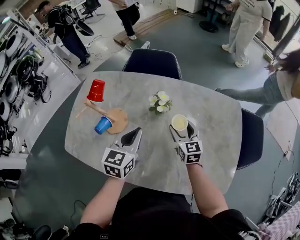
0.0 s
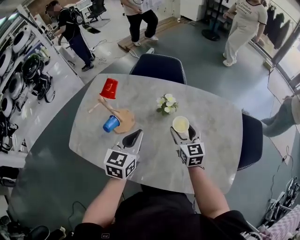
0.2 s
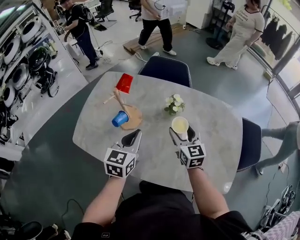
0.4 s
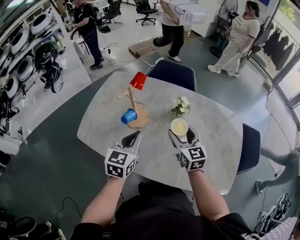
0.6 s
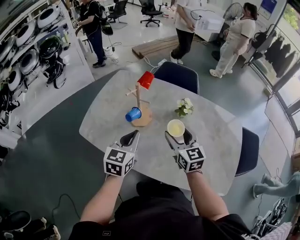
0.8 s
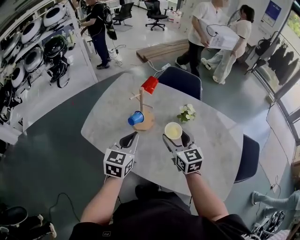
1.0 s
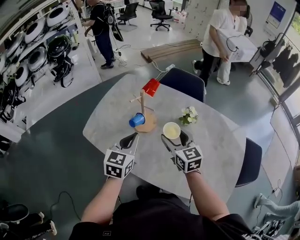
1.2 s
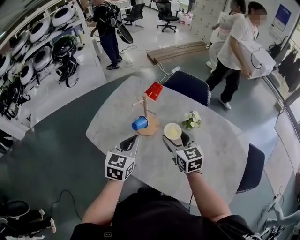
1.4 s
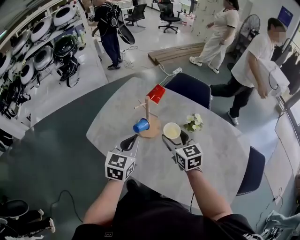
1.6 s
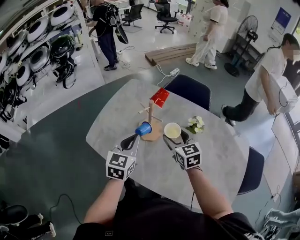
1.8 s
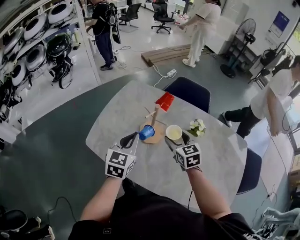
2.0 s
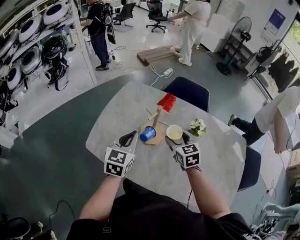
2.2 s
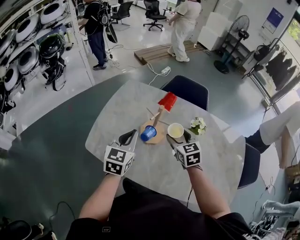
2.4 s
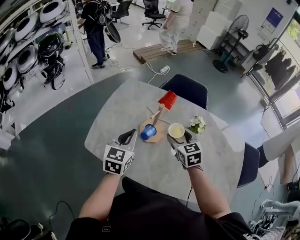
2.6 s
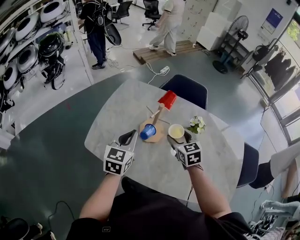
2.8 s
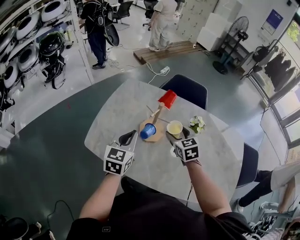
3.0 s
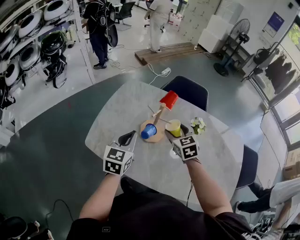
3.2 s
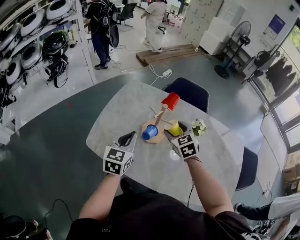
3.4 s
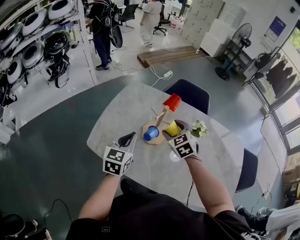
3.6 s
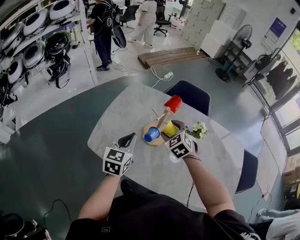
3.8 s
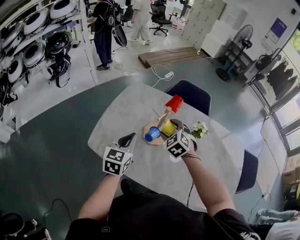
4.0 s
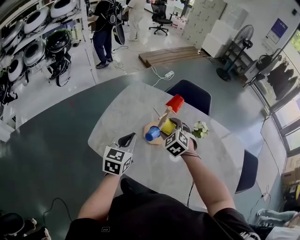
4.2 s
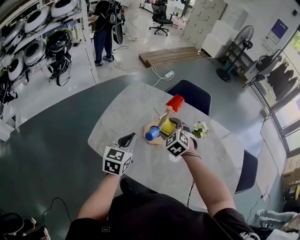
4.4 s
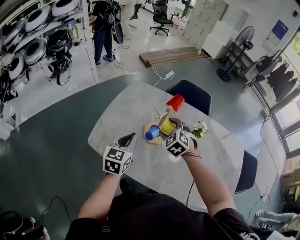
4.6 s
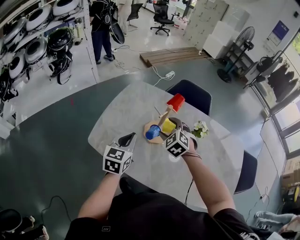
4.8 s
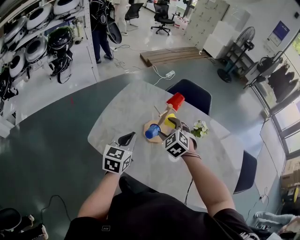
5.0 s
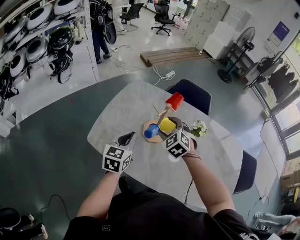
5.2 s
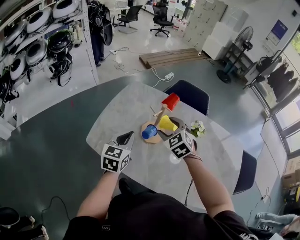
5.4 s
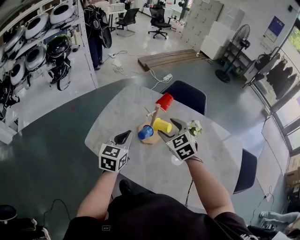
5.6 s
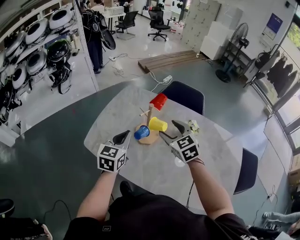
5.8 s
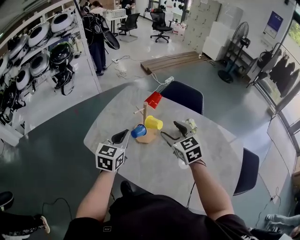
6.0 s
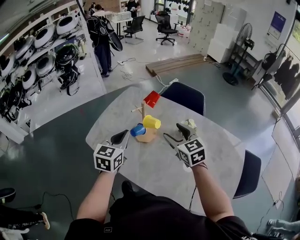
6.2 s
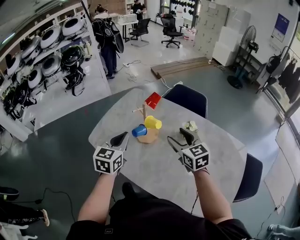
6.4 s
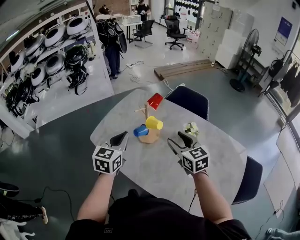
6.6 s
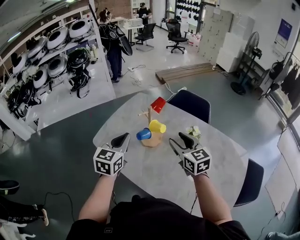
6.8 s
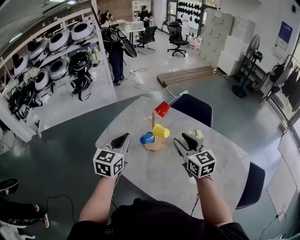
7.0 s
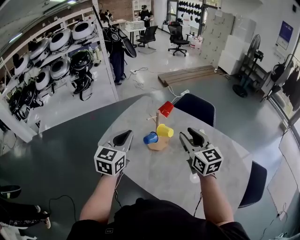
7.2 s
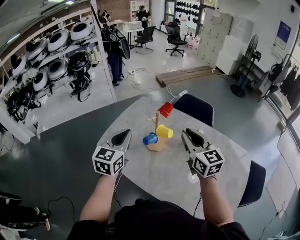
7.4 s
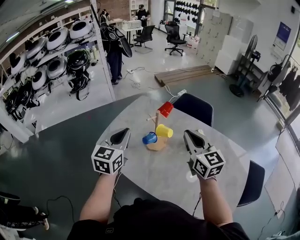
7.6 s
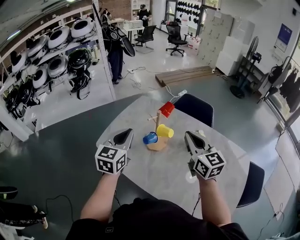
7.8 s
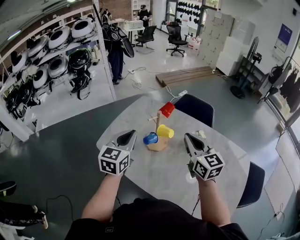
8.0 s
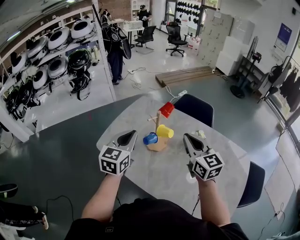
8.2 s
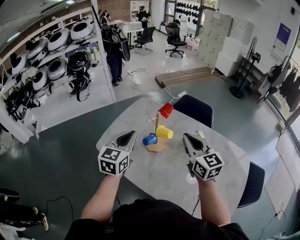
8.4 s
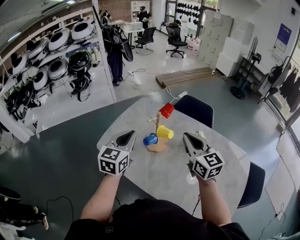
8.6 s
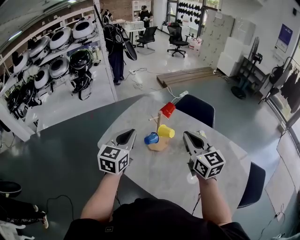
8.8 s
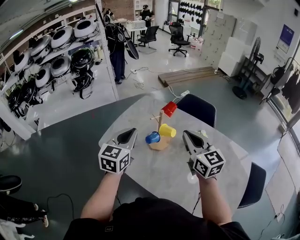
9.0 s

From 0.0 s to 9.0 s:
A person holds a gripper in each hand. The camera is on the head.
From 0.0 s to 1.6 s: The left gripper moves to the left, some 20 cm, while the right gripper travels to the left and upward by approximately 25 cm, and turns by some 30 degrees.
From 1.6 s to 3.0 s: The right gripper ends up roughly 5 cm from where it was; the left gripper is displaced to the left and forward by about 10 cm.
From 3.0 s to 4.4 s: The right gripper travels to the left by approximately 10 cm, and swivels some 40 degrees.
From 4.4 s to 6.0 s: The right gripper goes roughly 15 cm to the right, upward and backward, and rotates some 30 degrees, while the left gripper heads to the right, covering approximately 5 cm.
From 6.0 s to 7.6 s: Both grippers travel together upward, approximately 10 cm. The right gripper changes its angle by some 20 degrees, and closes its fingers.
From 7.6 s to 9.0 s: The grippers make only small movements.

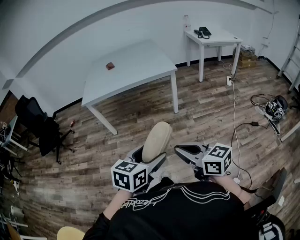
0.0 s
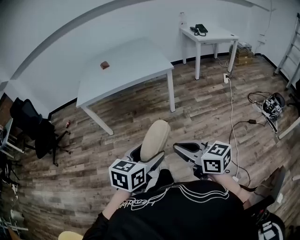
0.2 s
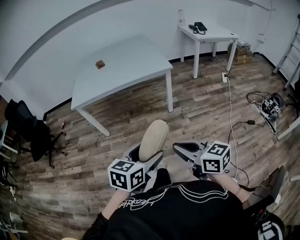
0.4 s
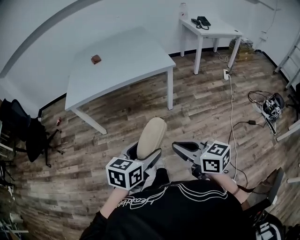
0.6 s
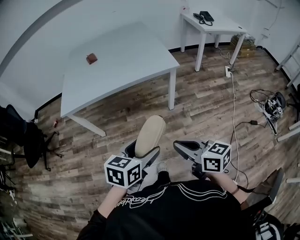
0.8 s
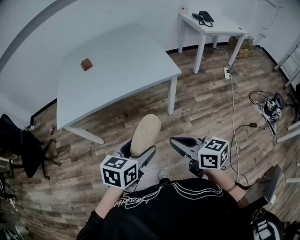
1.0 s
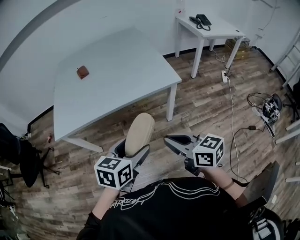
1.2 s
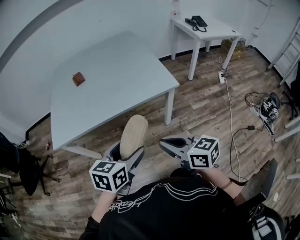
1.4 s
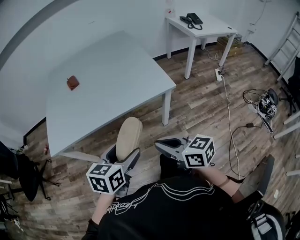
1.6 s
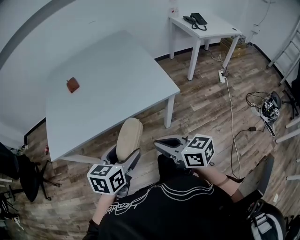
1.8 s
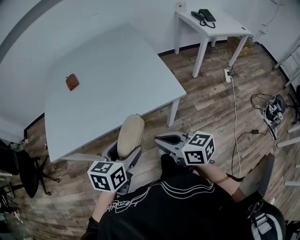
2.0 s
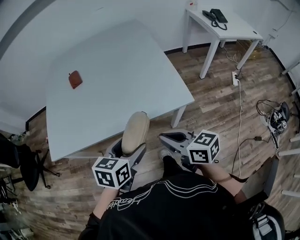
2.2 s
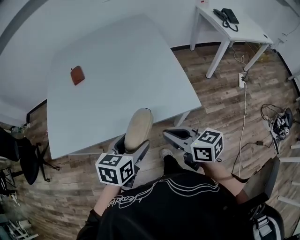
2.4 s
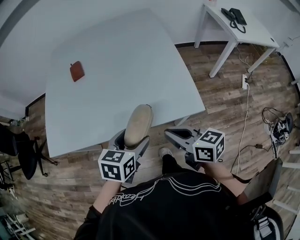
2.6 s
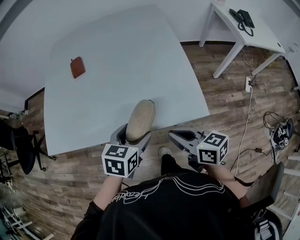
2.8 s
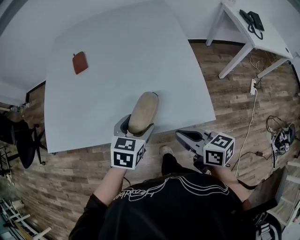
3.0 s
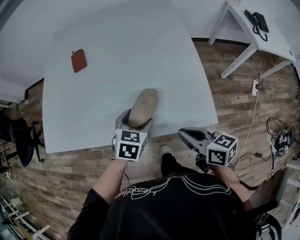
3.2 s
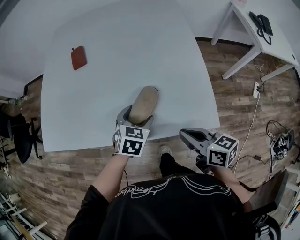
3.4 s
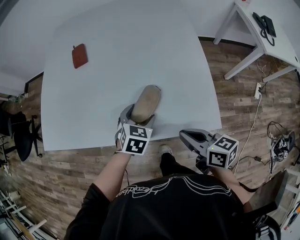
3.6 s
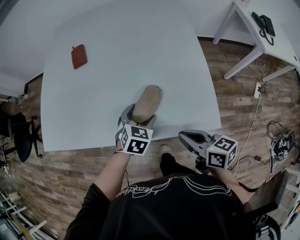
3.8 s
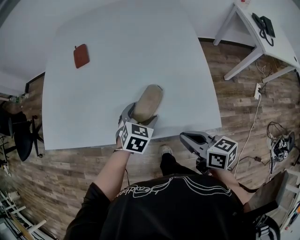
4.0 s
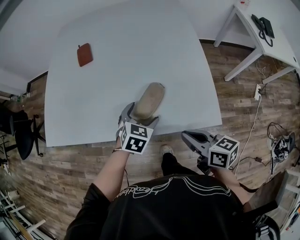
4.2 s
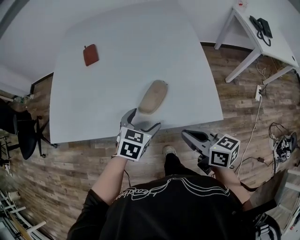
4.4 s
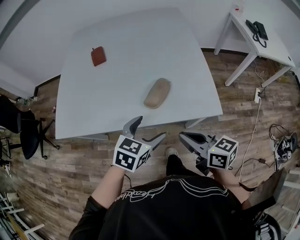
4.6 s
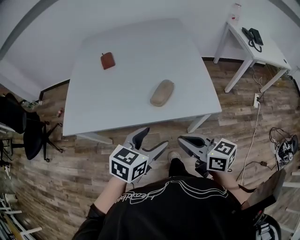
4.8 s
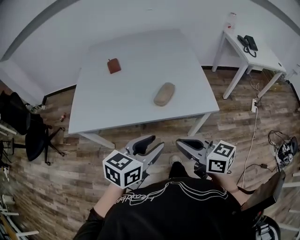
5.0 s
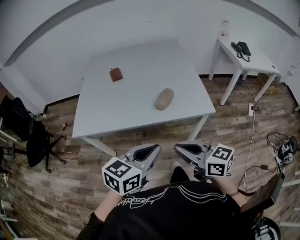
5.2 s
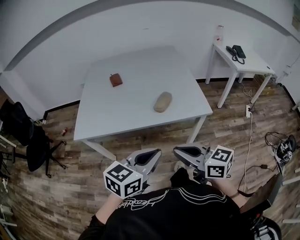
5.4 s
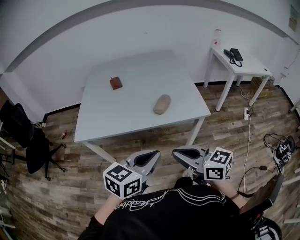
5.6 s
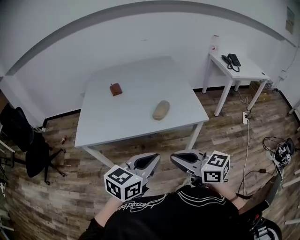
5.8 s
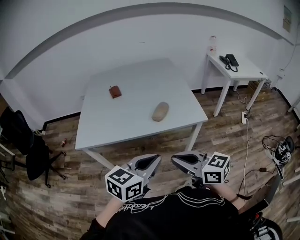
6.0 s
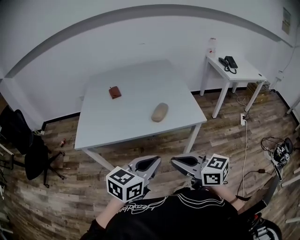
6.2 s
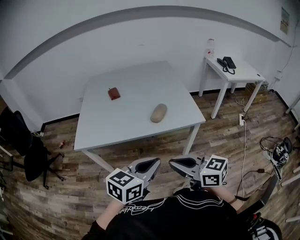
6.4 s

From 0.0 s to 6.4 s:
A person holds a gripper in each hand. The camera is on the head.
From 0.0 s to 1.6 s: The two grippers travel together, forward, some 50 cm.
From 1.6 s to 3.2 s: The left gripper heads forward and downward, covering about 35 cm, and rotates approximately 20 degrees; the right gripper moves forward, approximately 30 cm.
From 3.2 s to 4.8 s: The right gripper heads backward, to the left and upward, covering approximately 20 cm, while the left gripper travels backward and upward by roughly 25 cm, and turns by about 20 degrees.
From 4.8 s to 6.4 s: The grippers both shift backward and upward by roughly 20 cm. The left gripper closes up.

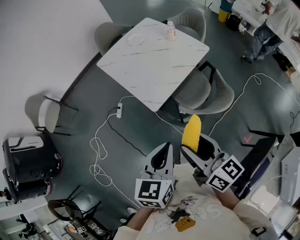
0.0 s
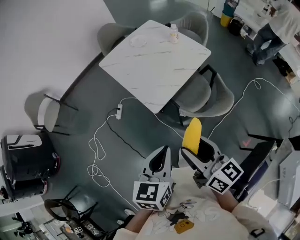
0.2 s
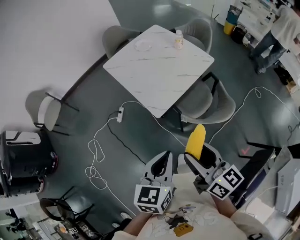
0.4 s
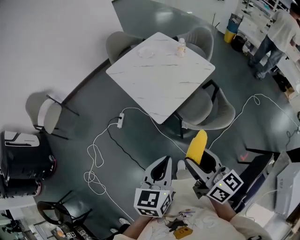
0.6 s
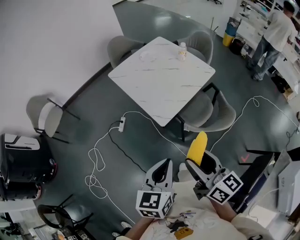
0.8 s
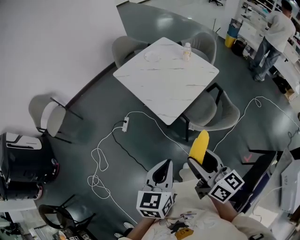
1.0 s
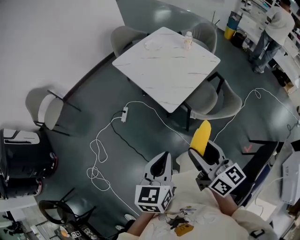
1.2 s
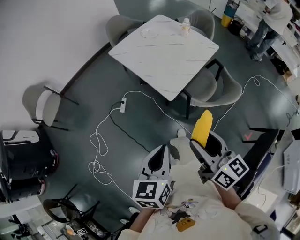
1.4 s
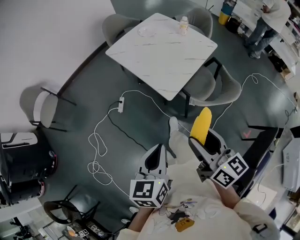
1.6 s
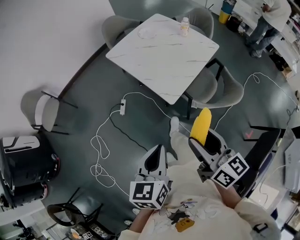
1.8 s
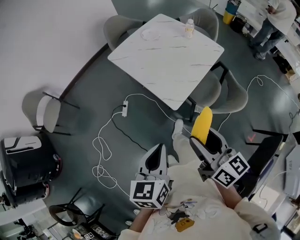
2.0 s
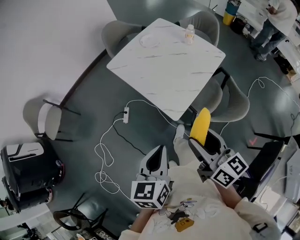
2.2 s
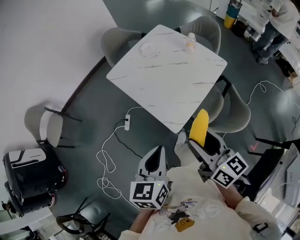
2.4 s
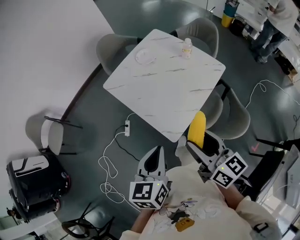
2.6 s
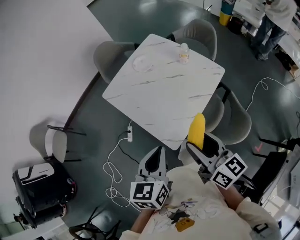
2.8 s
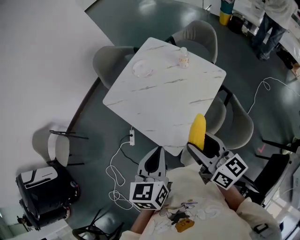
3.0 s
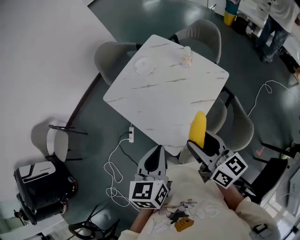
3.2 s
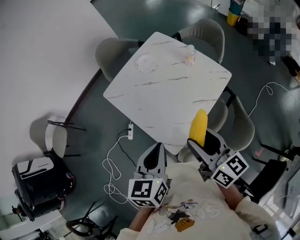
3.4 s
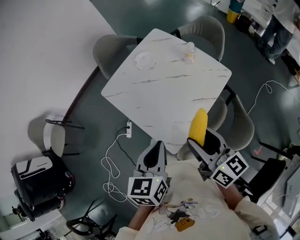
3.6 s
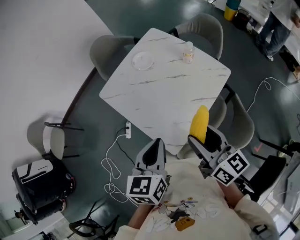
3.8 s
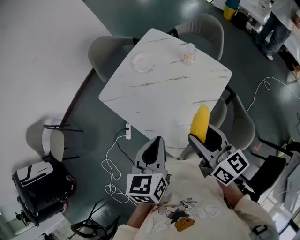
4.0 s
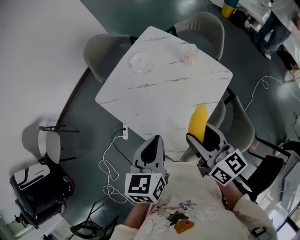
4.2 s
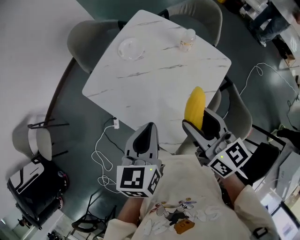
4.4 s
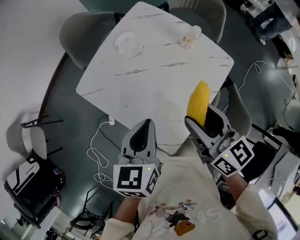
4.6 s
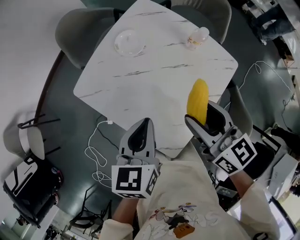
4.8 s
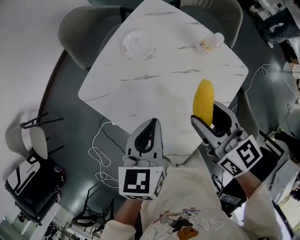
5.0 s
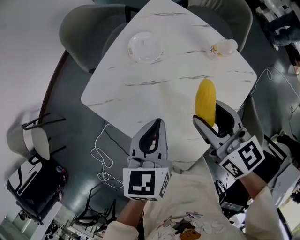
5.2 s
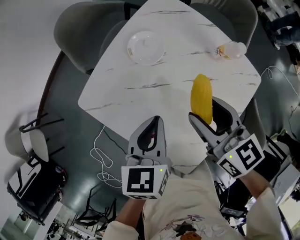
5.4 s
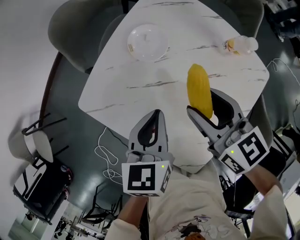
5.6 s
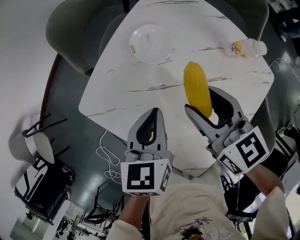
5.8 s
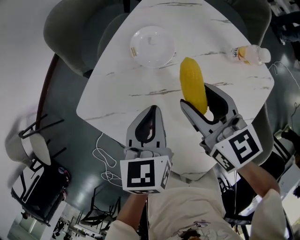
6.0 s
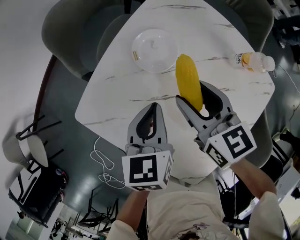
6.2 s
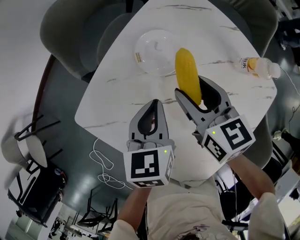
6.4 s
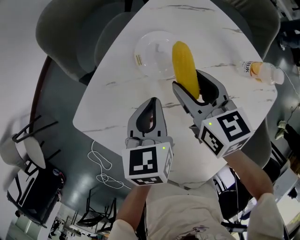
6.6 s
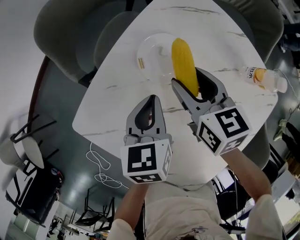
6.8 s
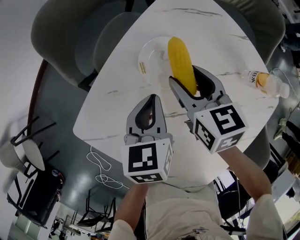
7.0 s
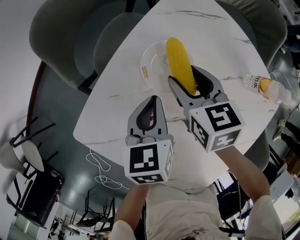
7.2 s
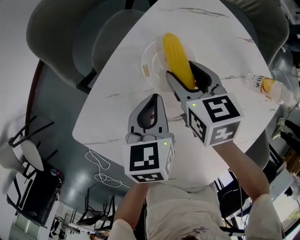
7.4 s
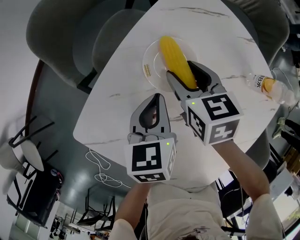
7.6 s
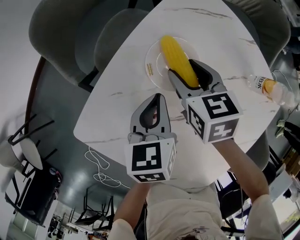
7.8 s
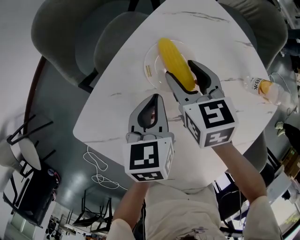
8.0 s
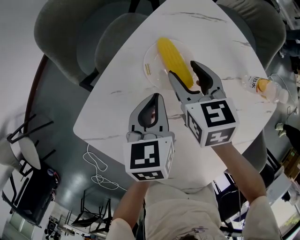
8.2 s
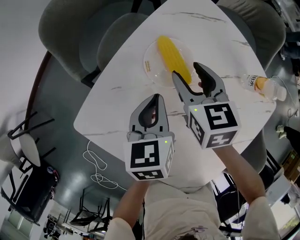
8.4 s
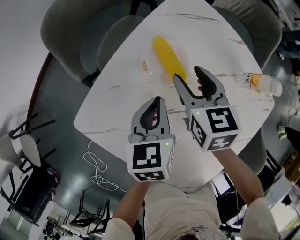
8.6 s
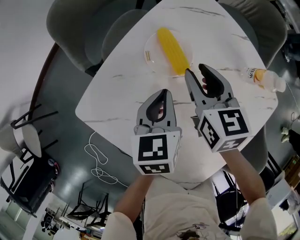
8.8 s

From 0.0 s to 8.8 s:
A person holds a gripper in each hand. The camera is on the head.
From 0.0 s to 1.4 s: The grippers both shift to the left by some 15 cm.
From 1.4 s to 3.0 s: The grippers both shift forward by some 35 cm.
From 3.0 s to 4.4 s: Both grippers travel together forward, approximately 15 cm.
From 4.4 s to 5.8 s: Both grippers move forward and downward, about 30 cm.
From 5.8 s to 7.4 s: Both grippers travel together downward and forward, about 20 cm. The right gripper rotates roughly 20 degrees.
From 7.4 s to 8.8 s: The right gripper shifts some 5 cm upward, and closes up. The left gripper ends up roughly 5 cm from where it was.
